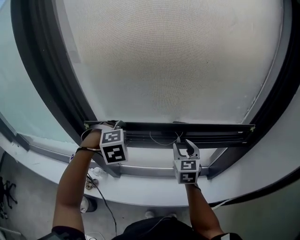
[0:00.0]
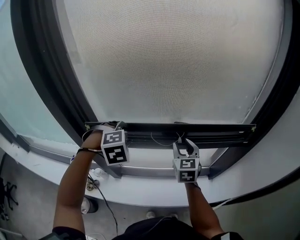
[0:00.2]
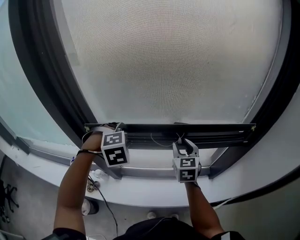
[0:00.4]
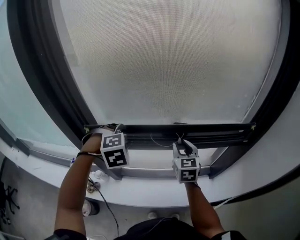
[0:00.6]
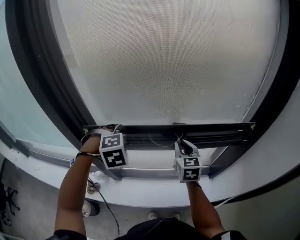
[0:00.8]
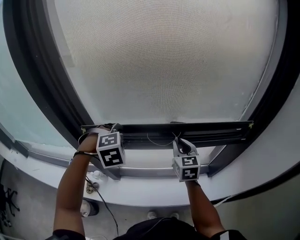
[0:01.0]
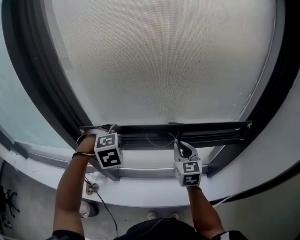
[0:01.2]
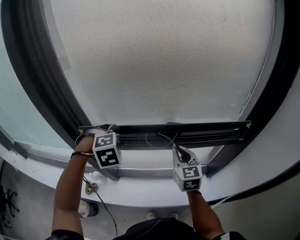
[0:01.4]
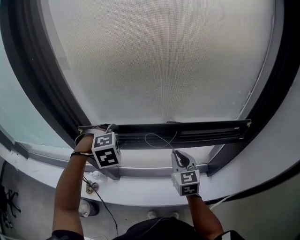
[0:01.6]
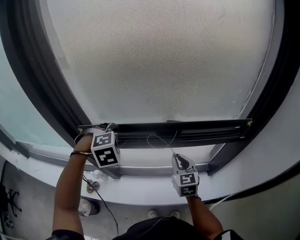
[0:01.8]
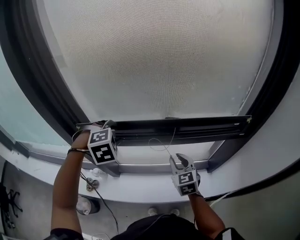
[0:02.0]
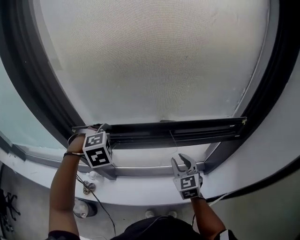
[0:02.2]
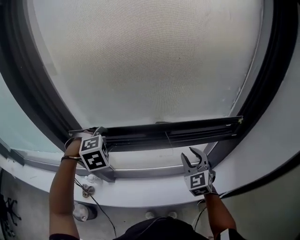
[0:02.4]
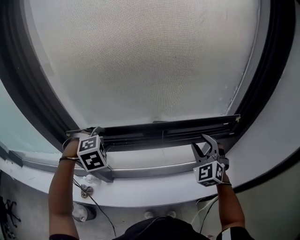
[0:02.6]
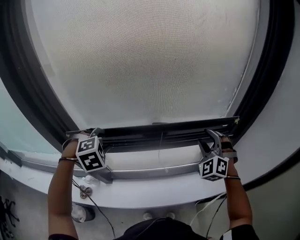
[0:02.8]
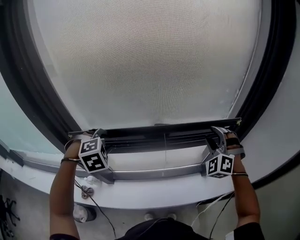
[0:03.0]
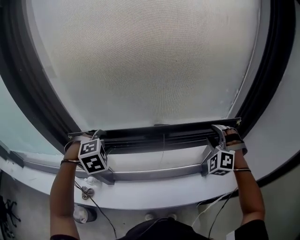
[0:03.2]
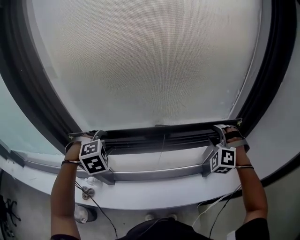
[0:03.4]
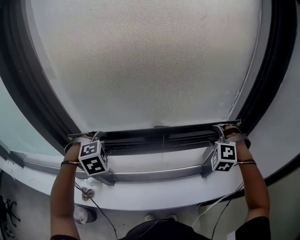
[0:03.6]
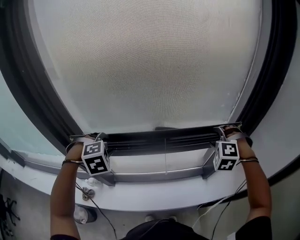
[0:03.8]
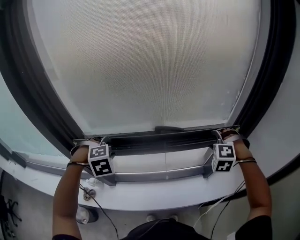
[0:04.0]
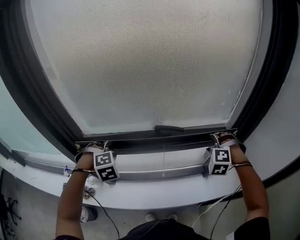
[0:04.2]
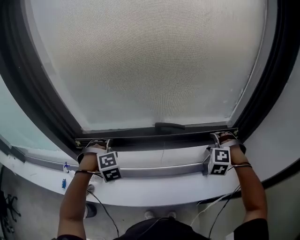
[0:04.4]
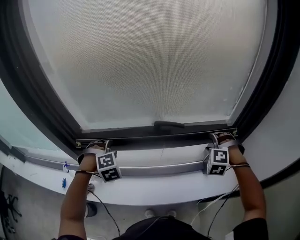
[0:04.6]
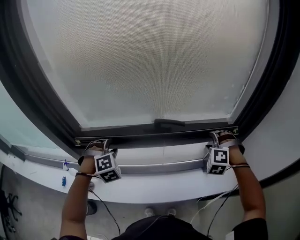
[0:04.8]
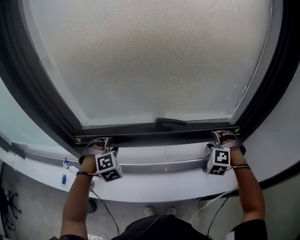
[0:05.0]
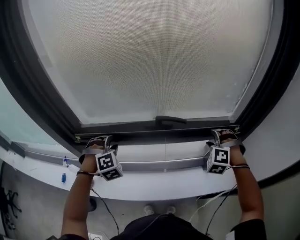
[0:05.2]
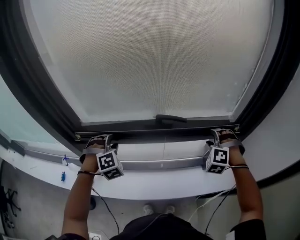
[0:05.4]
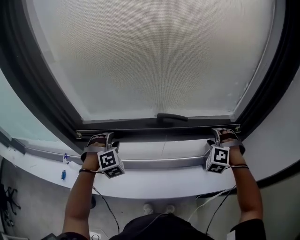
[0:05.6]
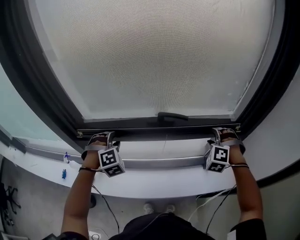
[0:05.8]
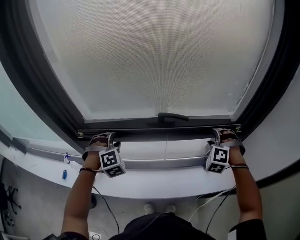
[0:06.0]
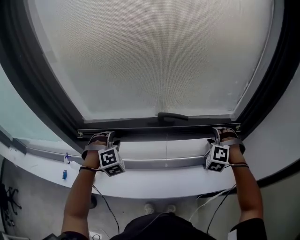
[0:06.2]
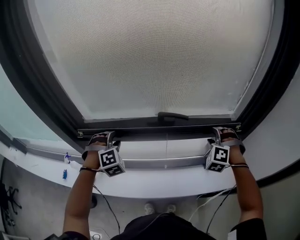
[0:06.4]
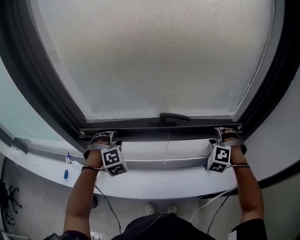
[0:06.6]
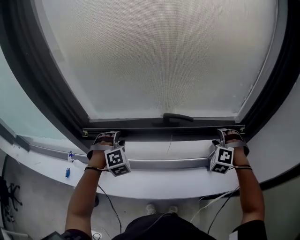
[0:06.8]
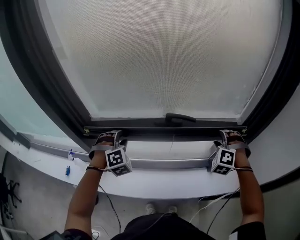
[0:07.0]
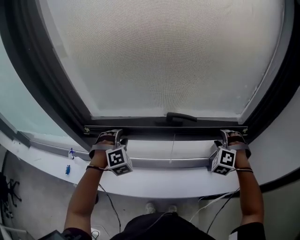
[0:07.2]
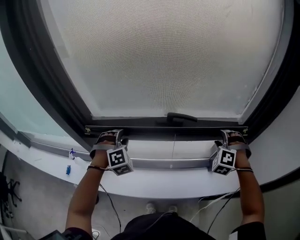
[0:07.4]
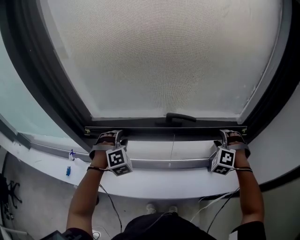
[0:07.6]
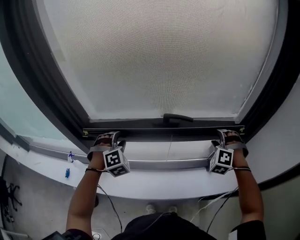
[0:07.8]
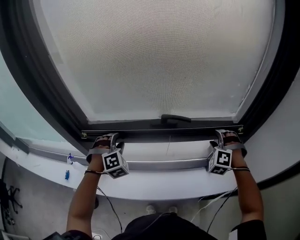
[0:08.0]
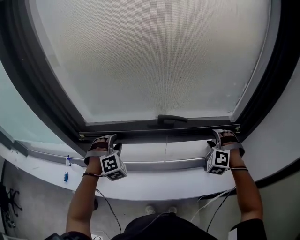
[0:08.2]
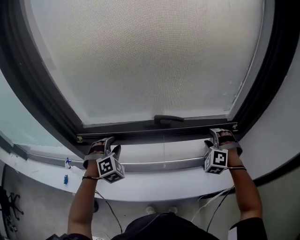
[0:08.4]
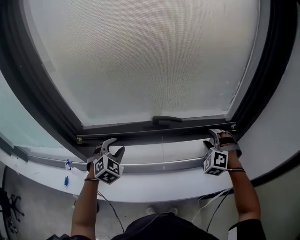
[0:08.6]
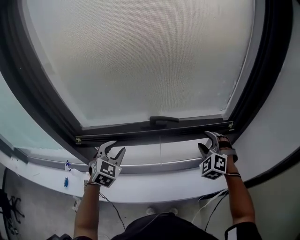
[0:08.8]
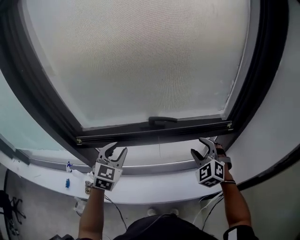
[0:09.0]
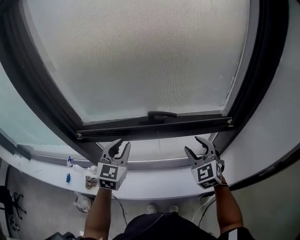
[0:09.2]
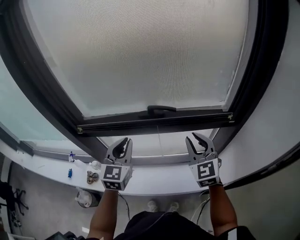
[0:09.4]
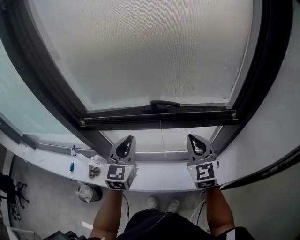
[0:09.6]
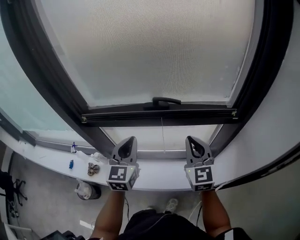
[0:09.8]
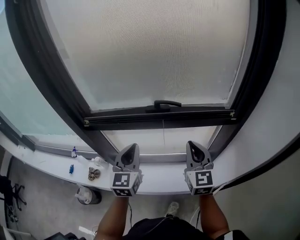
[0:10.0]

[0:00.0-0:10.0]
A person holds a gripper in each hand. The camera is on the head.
0:00.0 to 0:01.4: The right gripper closes up.
0:01.4 to 0:02.8: The right gripper goes roughly 15 cm to the right, rotates around the line of its fingers by roughly 60 degrees, counterclockwise from behind, and opens.
0:02.8 to 0:04.2: Both grippers move downward, roughly 5 cm. The right gripper tilts its fingers some 30 degrees downward.
0:04.2 to 0:07.2: There are only small adjustments of the grippers.
0:07.2 to 0:08.6: The left gripper changes its angle by some 30 degrees.
0:08.6 to 0:10.0: The left gripper goes roughly 15 cm backward, to the right and upward, rotates around the line of its fingers by about 40 degrees, counterclockwise from behind, and closes up, while the right gripper goes roughly 15 cm backward, to the left and upward, twists approximately 70 degrees clockwise, seen from behind, and closes up.

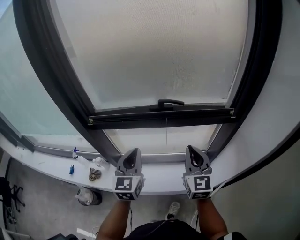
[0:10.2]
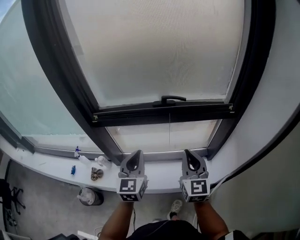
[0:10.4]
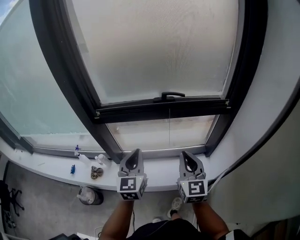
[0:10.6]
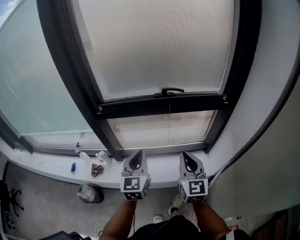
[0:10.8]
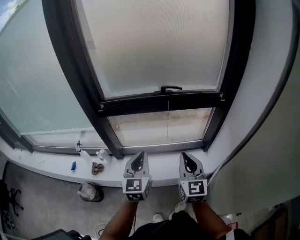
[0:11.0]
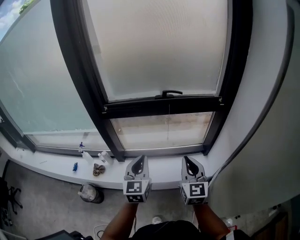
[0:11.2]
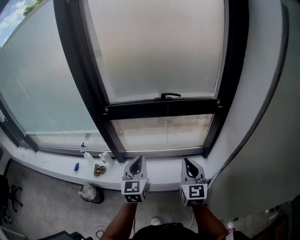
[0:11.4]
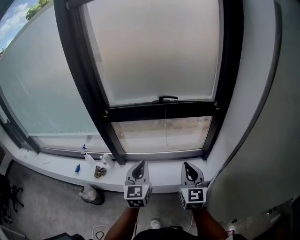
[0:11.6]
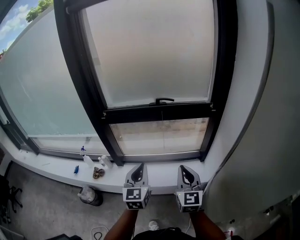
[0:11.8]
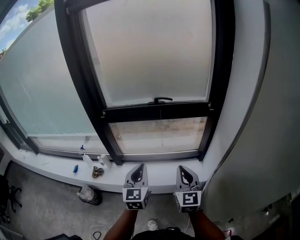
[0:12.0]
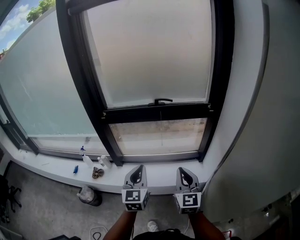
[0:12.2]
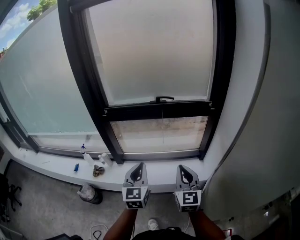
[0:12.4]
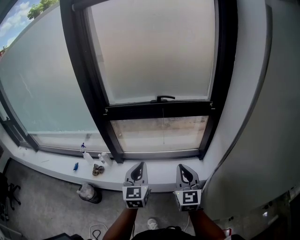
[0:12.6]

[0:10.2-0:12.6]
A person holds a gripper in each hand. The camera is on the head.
0:10.2 to 0:11.4: The grippers both shift backward by roughly 20 cm.
0:11.4 to 0:12.6: Both grippers move backward, approximately 5 cm.

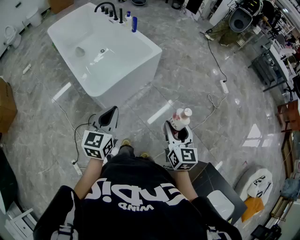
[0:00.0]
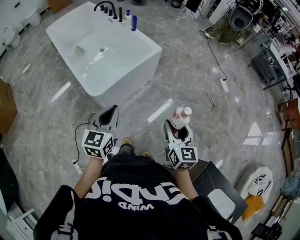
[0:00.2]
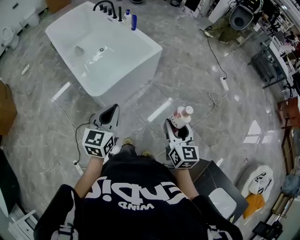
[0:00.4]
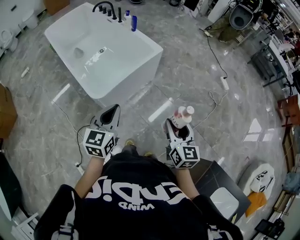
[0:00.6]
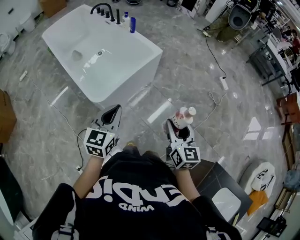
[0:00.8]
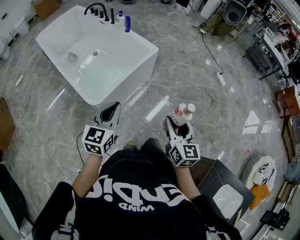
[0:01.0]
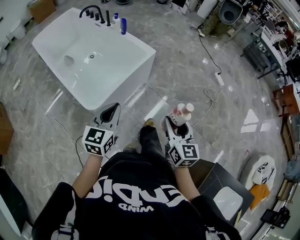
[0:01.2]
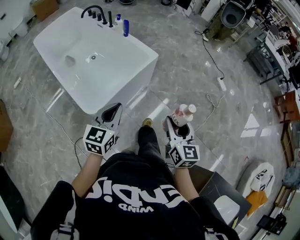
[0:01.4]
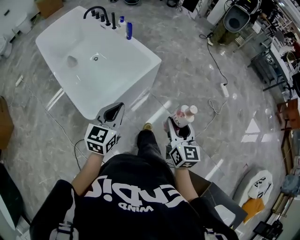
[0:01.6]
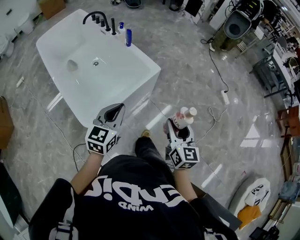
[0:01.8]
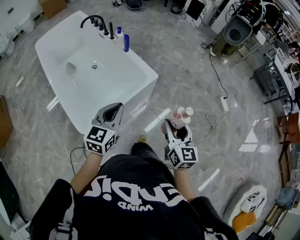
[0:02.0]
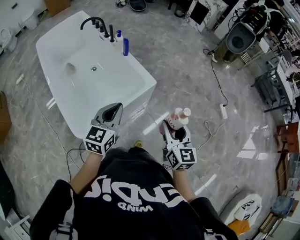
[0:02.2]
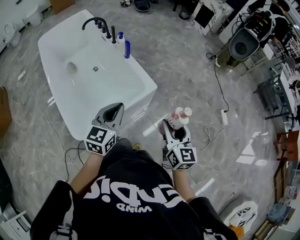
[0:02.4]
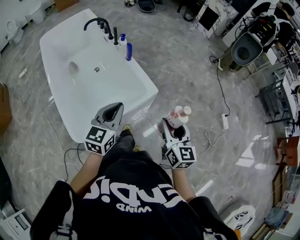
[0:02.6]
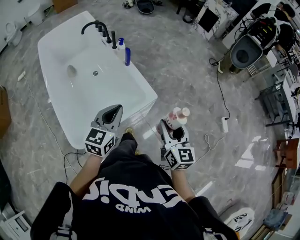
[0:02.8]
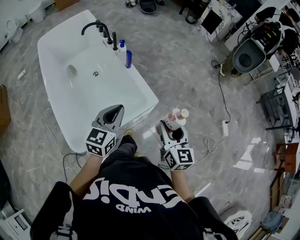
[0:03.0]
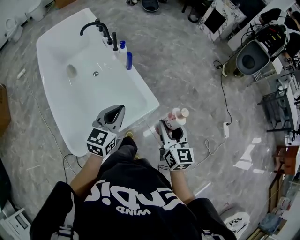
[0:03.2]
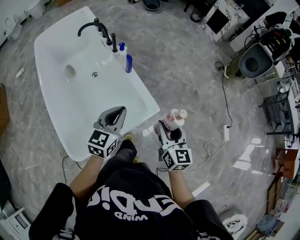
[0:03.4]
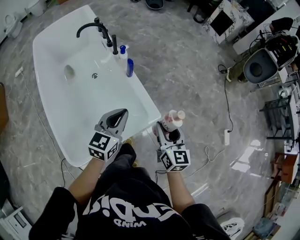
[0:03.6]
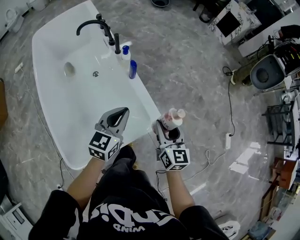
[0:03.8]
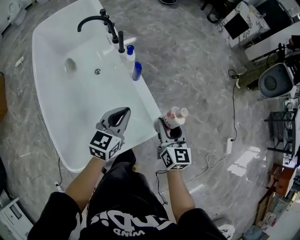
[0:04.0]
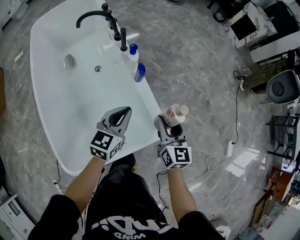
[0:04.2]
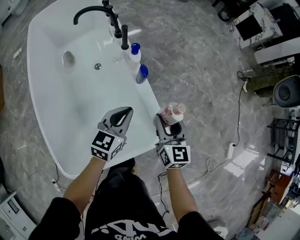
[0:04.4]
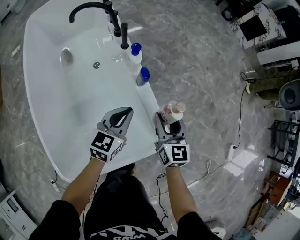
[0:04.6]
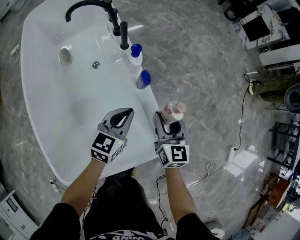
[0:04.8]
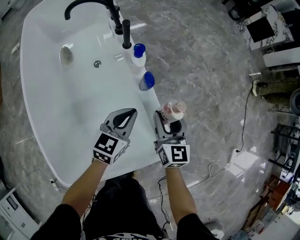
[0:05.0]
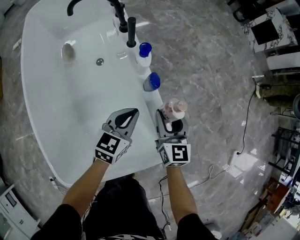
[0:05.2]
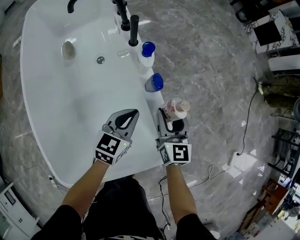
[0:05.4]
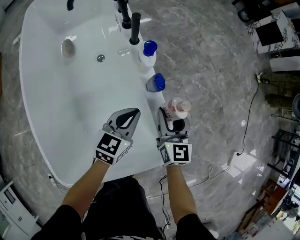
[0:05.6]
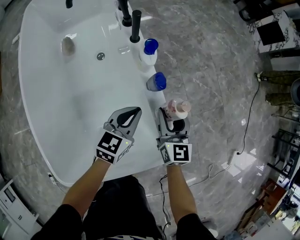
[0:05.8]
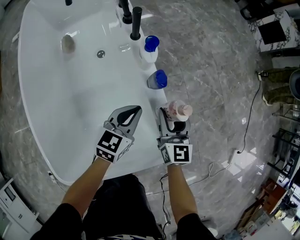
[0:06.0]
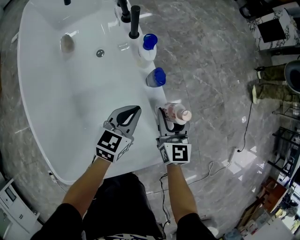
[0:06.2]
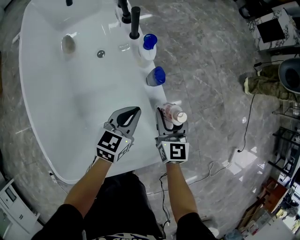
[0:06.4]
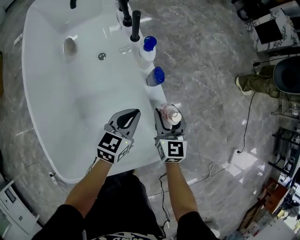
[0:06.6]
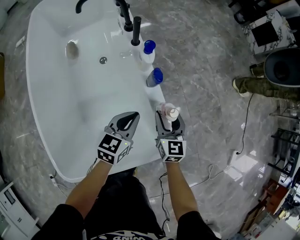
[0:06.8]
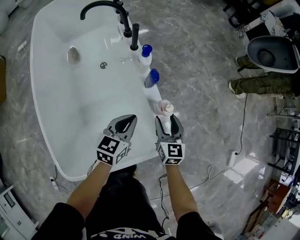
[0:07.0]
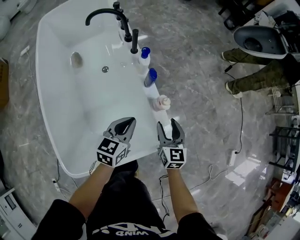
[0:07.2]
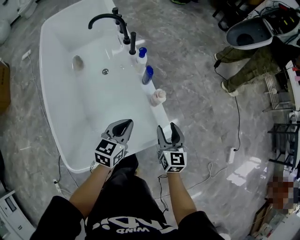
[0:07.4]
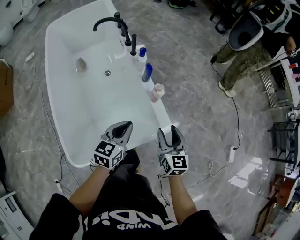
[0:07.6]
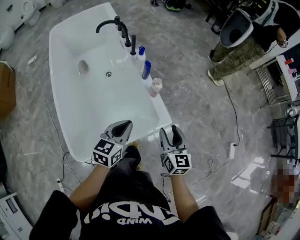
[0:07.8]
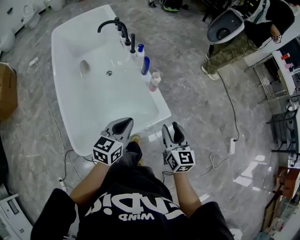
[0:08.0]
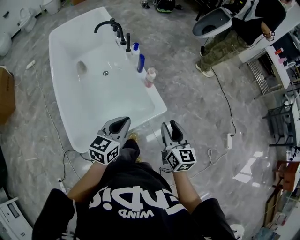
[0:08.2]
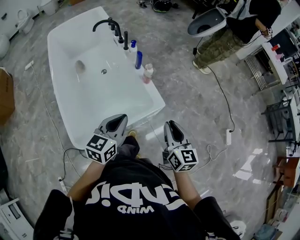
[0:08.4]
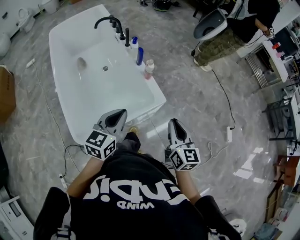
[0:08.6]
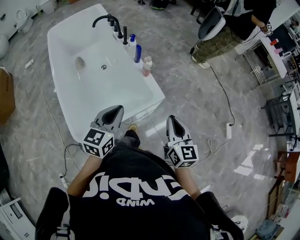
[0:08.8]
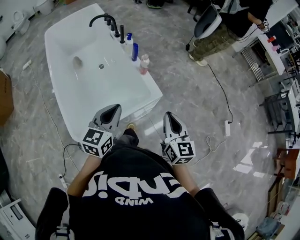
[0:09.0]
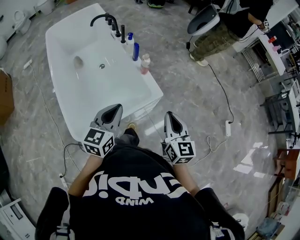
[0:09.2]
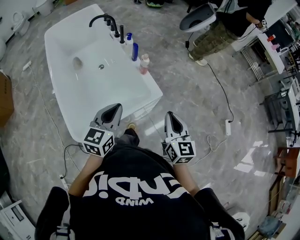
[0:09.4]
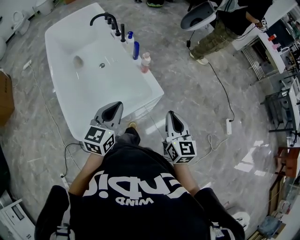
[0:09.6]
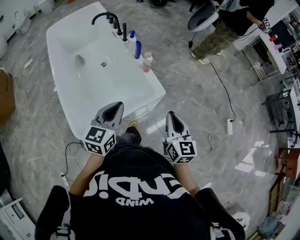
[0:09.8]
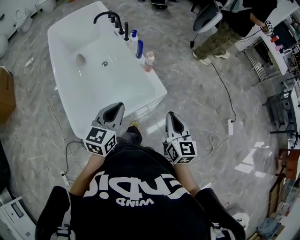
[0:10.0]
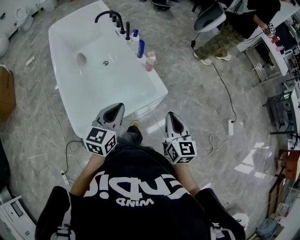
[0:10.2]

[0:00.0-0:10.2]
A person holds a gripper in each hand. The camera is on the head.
0:00.0 to 0:01.4: The two grippers go approximately 15 cm forward.
0:01.4 to 0:03.0: Both grippers move forward, some 35 cm.
0:03.0 to 0:04.4: The grippers both shift forward and downward by roughly 35 cm.
0:04.4 to 0:05.8: The grippers both shift downward and forward by some 15 cm.
0:05.8 to 0:07.2: Both grippers move backward and upward, about 15 cm.
0:07.2 to 0:08.8: The grippers both shift backward and upward by about 35 cm. The right gripper closes its fingers.
0:08.8 to 0:10.2: The grippers stay close to where they were, moving slightly.

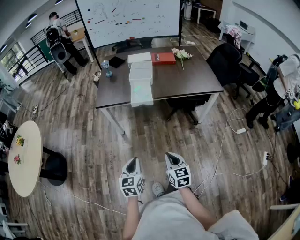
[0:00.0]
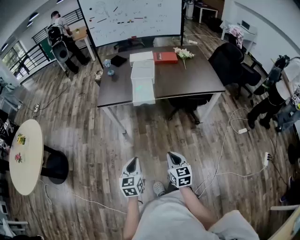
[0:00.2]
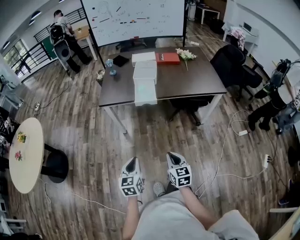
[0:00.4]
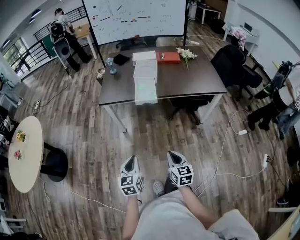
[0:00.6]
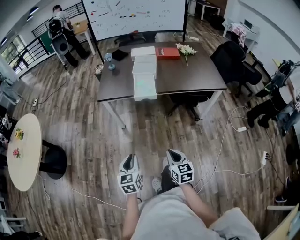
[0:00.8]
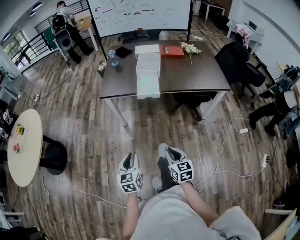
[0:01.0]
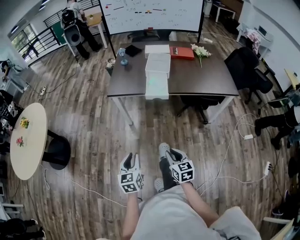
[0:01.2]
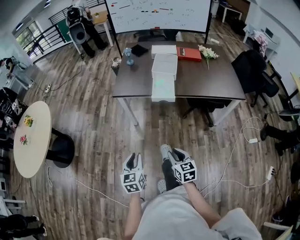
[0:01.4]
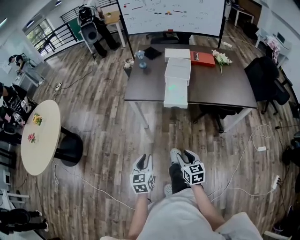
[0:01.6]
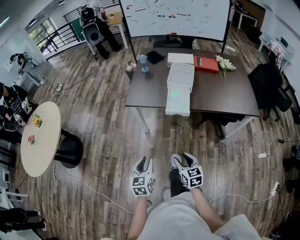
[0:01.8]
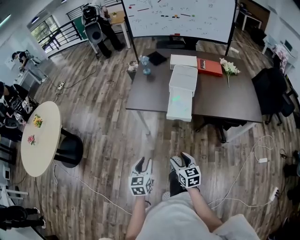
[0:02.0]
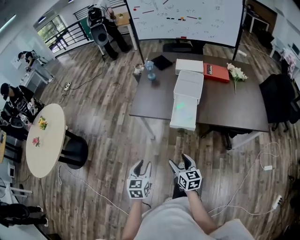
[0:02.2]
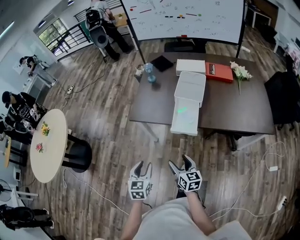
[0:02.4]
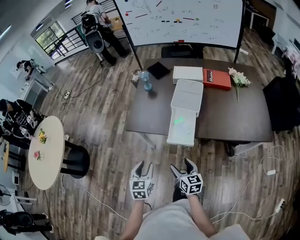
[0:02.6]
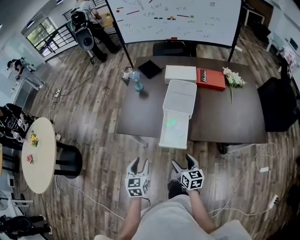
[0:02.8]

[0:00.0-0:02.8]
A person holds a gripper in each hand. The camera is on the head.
0:00.0 to 0:01.4: The right gripper travels forward and to the left by approximately 10 cm. The left gripper moves to the left, some 10 cm.
0:01.4 to 0:02.8: Both grippers travel together forward, about 30 cm. The right gripper opens.
